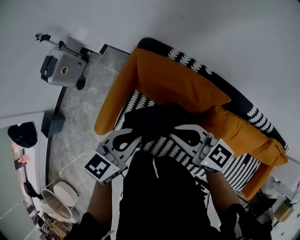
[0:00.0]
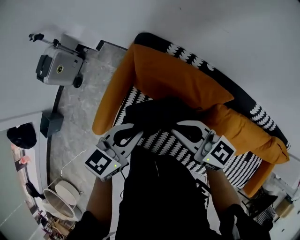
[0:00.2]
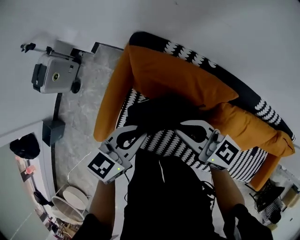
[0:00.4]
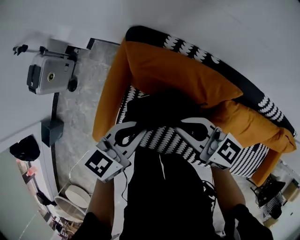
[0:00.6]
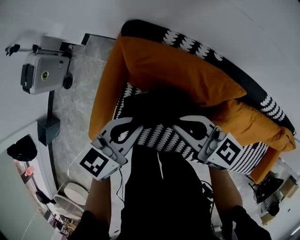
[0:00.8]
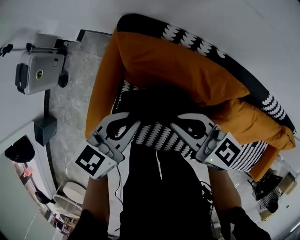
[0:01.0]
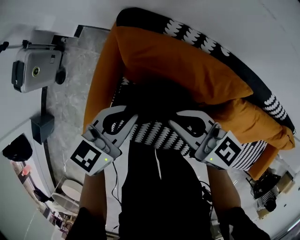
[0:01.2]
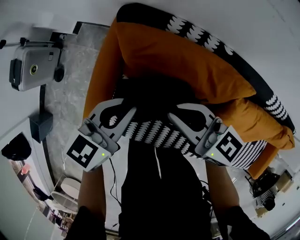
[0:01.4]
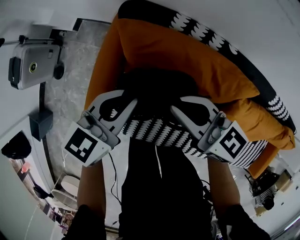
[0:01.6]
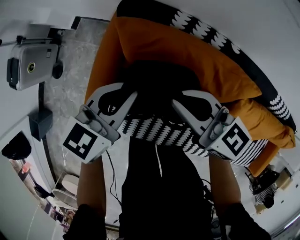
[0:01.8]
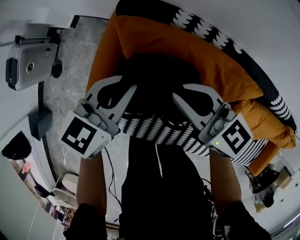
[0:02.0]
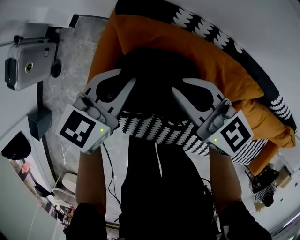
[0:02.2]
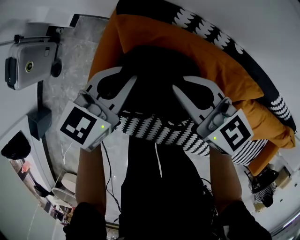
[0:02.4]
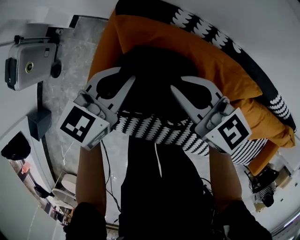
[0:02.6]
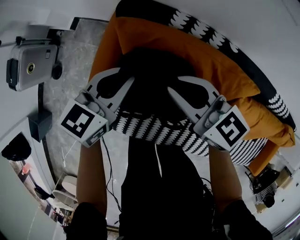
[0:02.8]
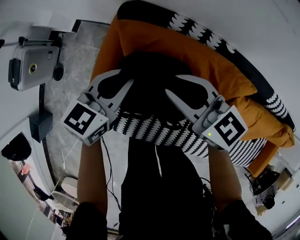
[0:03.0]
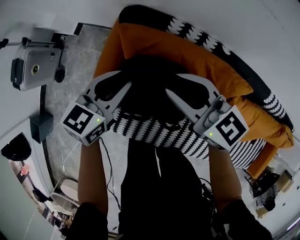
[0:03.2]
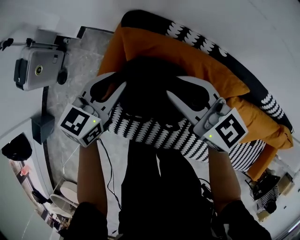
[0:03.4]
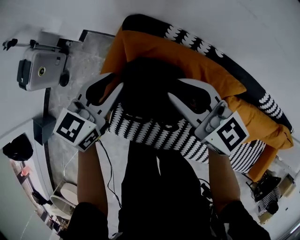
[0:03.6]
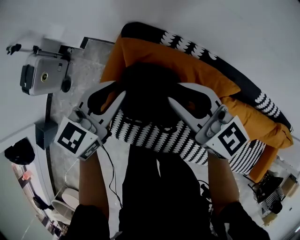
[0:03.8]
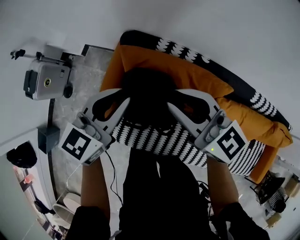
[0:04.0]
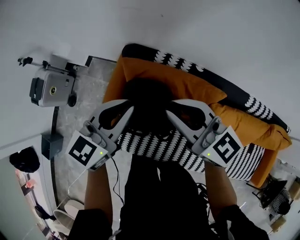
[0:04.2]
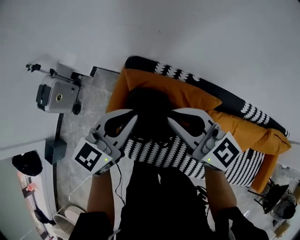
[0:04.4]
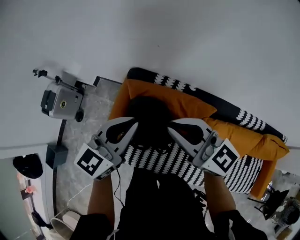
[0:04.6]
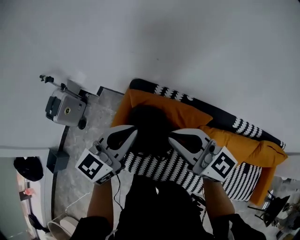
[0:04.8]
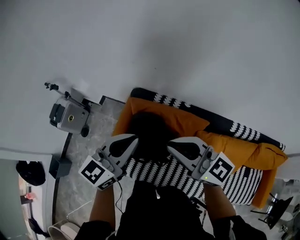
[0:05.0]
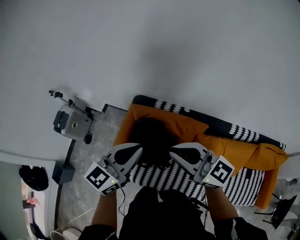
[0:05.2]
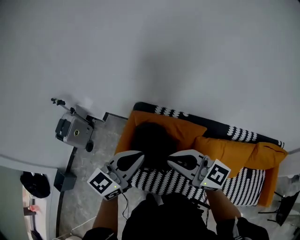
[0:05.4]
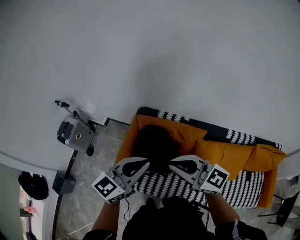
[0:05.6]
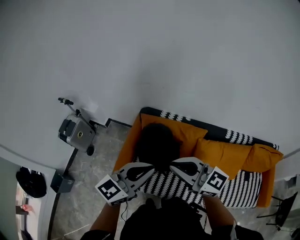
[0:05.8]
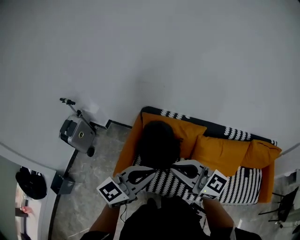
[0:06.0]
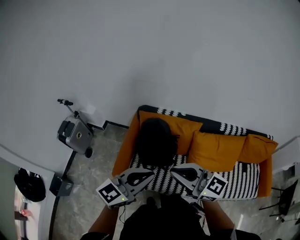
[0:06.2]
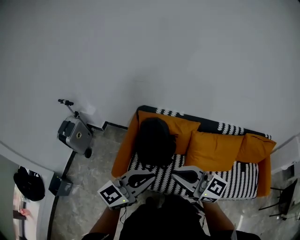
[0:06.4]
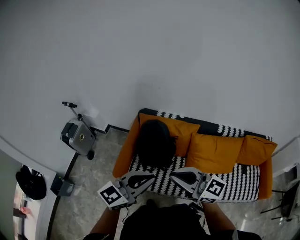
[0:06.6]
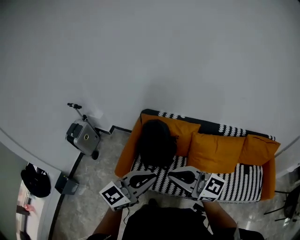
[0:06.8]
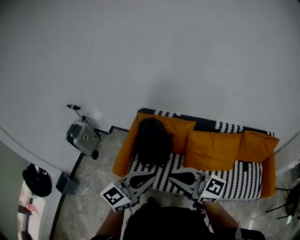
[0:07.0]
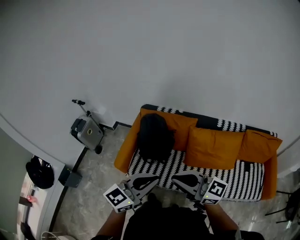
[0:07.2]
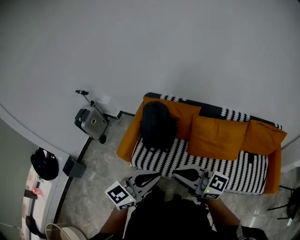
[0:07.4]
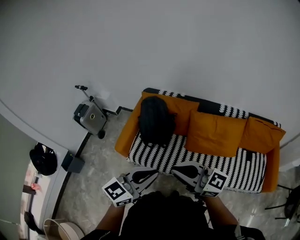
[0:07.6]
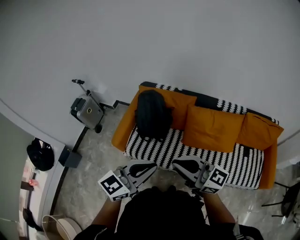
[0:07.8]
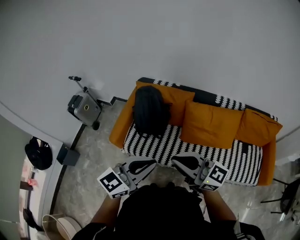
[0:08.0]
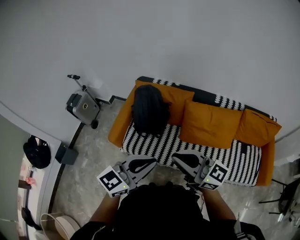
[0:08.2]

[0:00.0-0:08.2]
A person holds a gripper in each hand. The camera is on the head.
0.0 to 1.6 s: Both grippers move downward and forward, about 15 cm.
1.6 to 3.2 s: The left gripper goes about 10 cm to the left and forward, and opens up. The right gripper is displaced forward and to the left by about 10 cm.
3.2 to 5.0 s: Both grippers move upward and backward, some 30 cm. The right gripper swivels about 20 degrees. Meanwhile the left gripper turns by some 20 degrees, and closes.
5.0 to 6.6 s: The grippers both shift backward by approximately 30 cm.
6.6 to 8.2 s: The right gripper moves to the right and backward, some 15 cm, while the left gripper heads backward and to the right, covering roughly 15 cm.

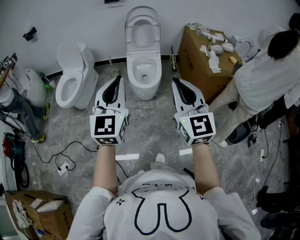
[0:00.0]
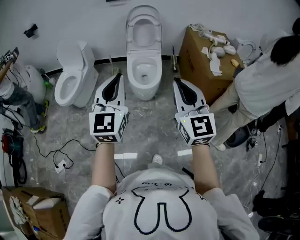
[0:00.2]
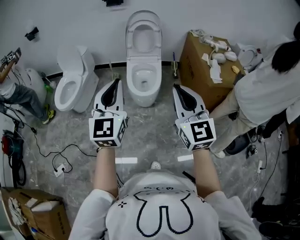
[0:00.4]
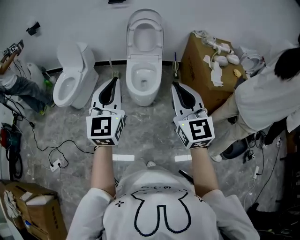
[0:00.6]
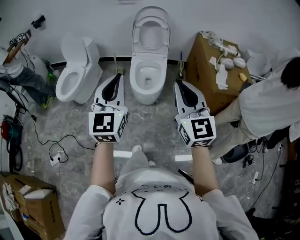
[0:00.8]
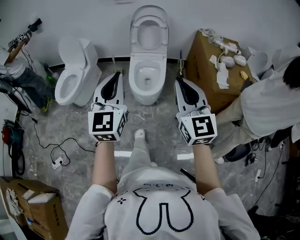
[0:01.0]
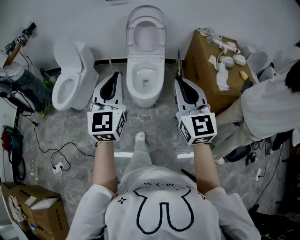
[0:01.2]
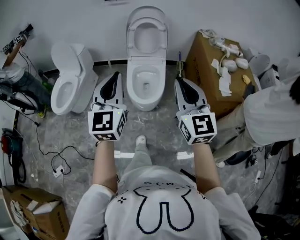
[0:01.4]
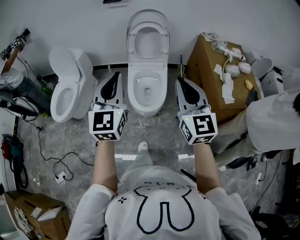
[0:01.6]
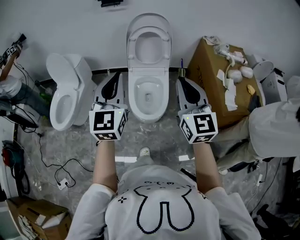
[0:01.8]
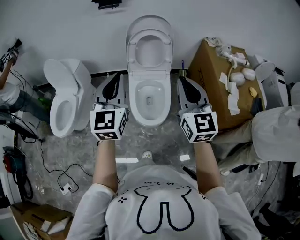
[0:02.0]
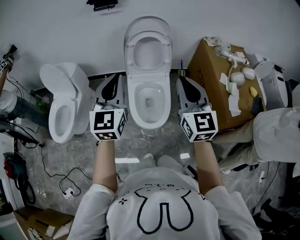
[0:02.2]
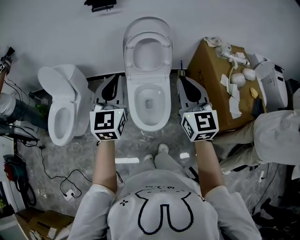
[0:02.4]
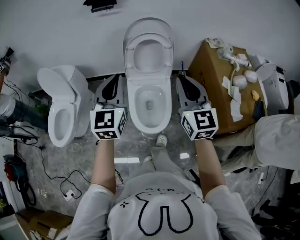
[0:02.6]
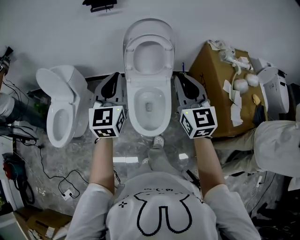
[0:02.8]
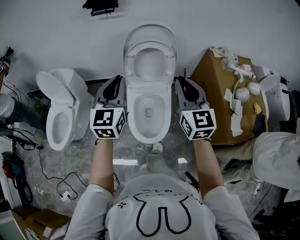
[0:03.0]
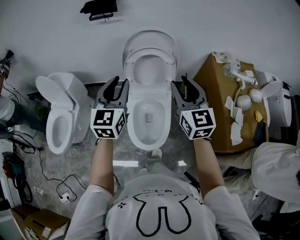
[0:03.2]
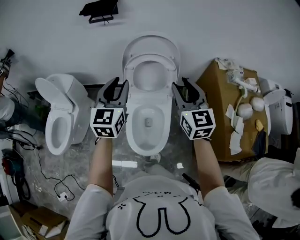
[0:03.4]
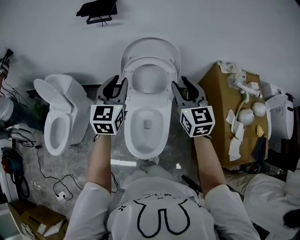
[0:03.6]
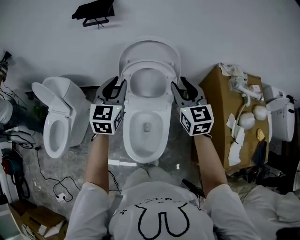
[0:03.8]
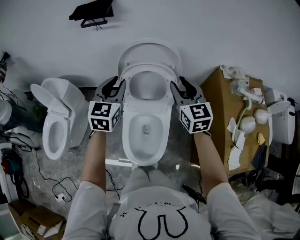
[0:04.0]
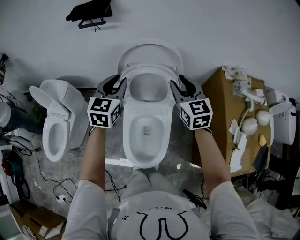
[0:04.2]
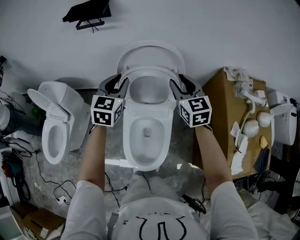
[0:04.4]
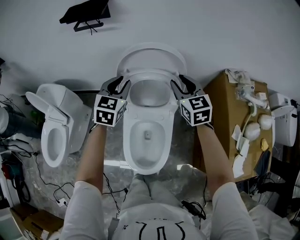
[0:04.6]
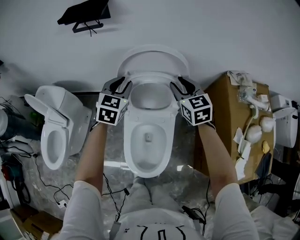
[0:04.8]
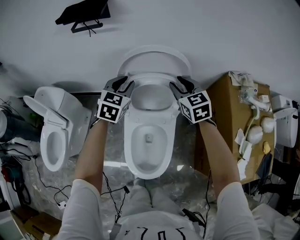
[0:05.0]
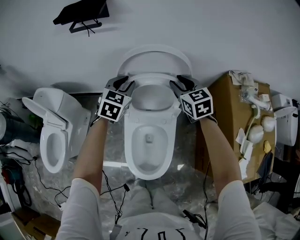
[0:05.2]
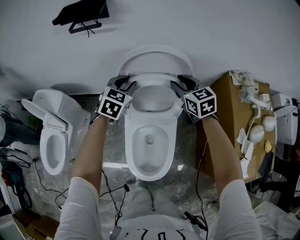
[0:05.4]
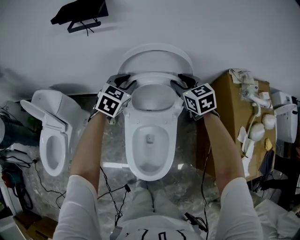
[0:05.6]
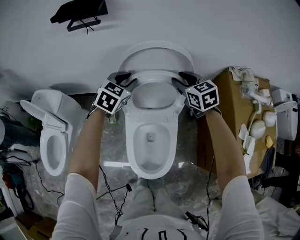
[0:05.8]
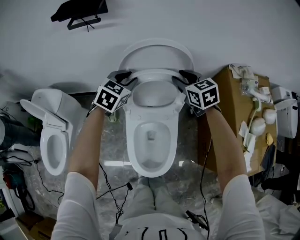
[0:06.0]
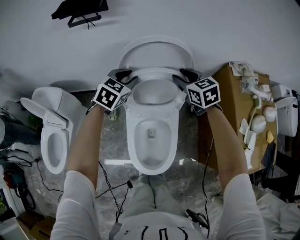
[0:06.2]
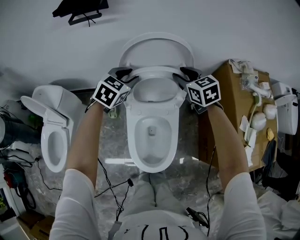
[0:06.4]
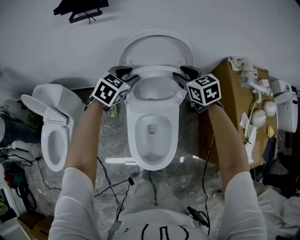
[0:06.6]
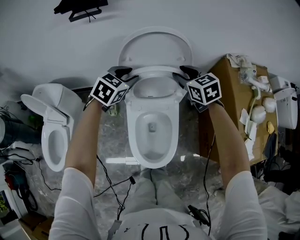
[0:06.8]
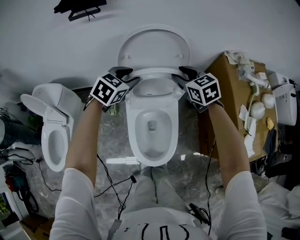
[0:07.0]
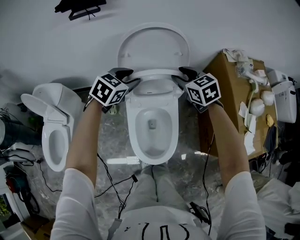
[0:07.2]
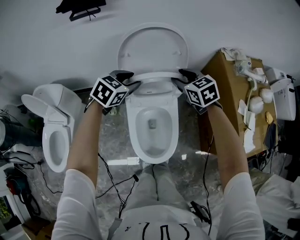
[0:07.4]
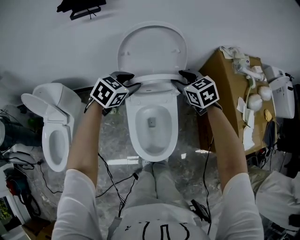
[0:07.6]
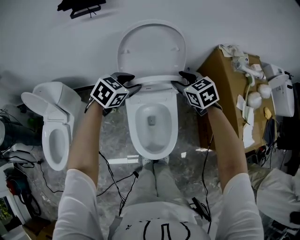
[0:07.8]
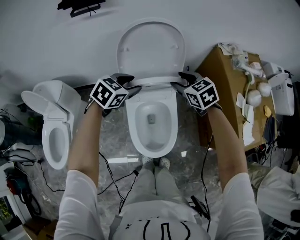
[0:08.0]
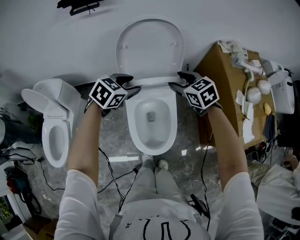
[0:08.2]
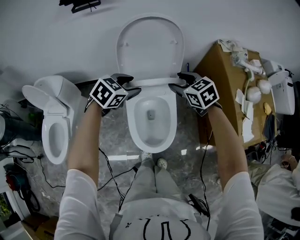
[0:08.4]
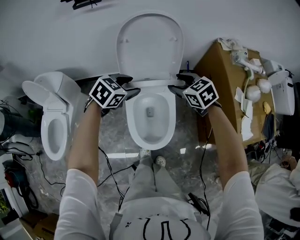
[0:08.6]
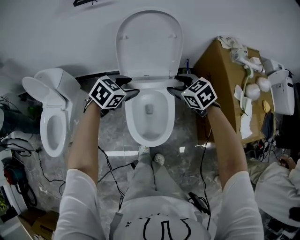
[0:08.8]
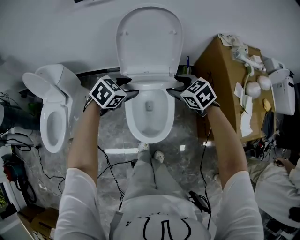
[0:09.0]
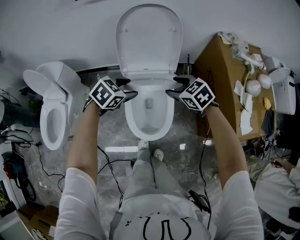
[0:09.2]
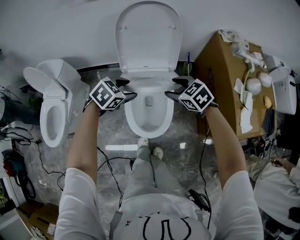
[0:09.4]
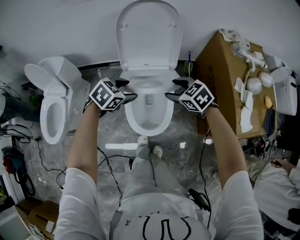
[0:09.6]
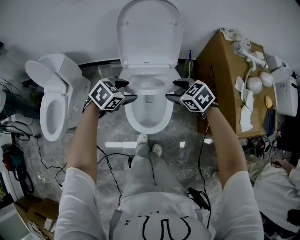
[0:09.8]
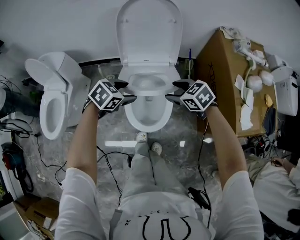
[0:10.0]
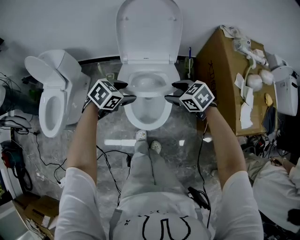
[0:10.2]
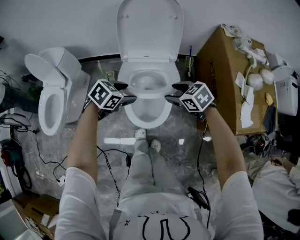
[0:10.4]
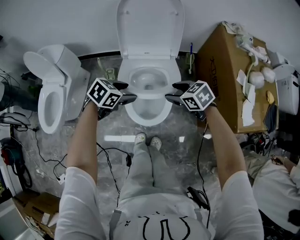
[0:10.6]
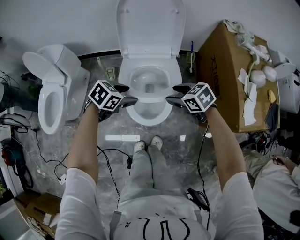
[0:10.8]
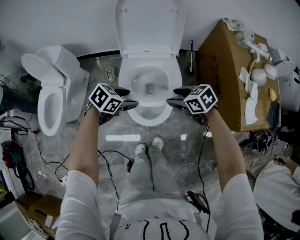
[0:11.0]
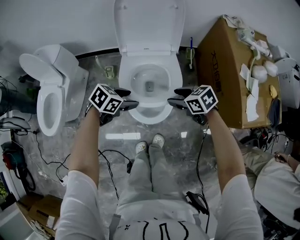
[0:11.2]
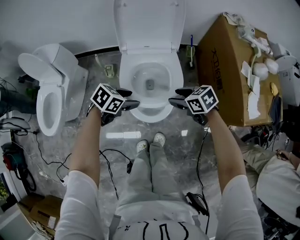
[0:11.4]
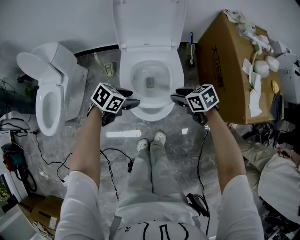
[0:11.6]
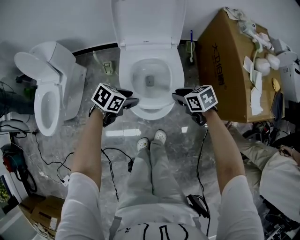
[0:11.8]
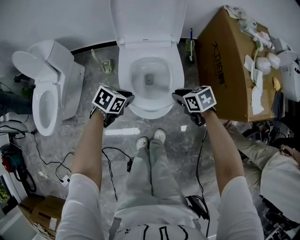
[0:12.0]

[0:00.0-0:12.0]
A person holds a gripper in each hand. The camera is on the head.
0.0 to 1.6 s: The two grippers go some 30 cm forward.
1.6 to 3.0 s: Both grippers move forward, some 30 cm.
3.0 to 4.4 s: The grippers both shift forward and downward by some 30 cm. The right gripper opens its fingers.
4.4 to 6.0 s: The grippers both shift downward and forward by some 10 cm. The left gripper rotates about 30 degrees.
6.0 to 7.6 s: The two grippers go some 10 cm backward.
7.6 to 9.0 s: Both grippers travel together backward, approximately 15 cm.
9.0 to 10.4 s: The left gripper changes place by approximately 15 cm. The right gripper shifts by about 15 cm.
10.4 to 12.0 s: Both grippers travel together downward, roughly 10 cm. The left gripper closes up, while the right gripper swivels about 20 degrees, and closes.

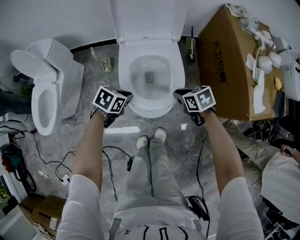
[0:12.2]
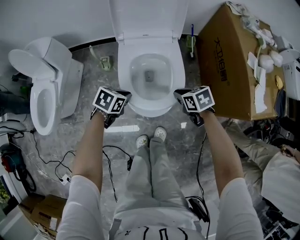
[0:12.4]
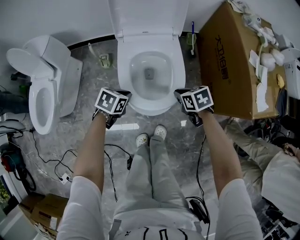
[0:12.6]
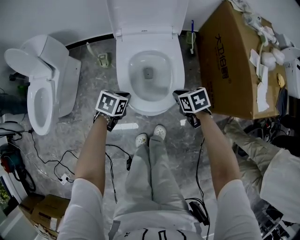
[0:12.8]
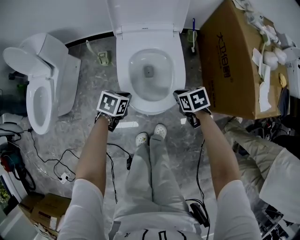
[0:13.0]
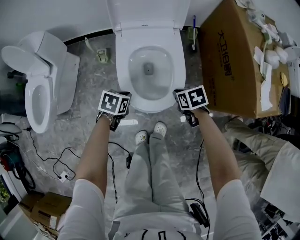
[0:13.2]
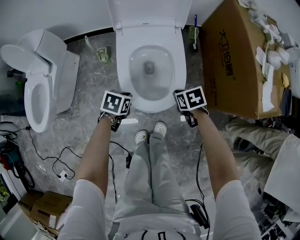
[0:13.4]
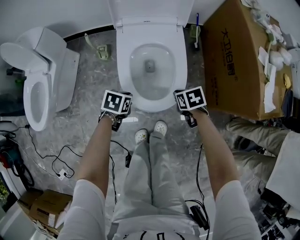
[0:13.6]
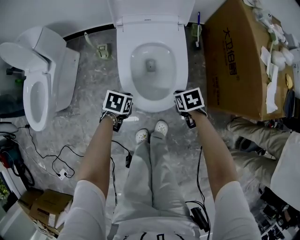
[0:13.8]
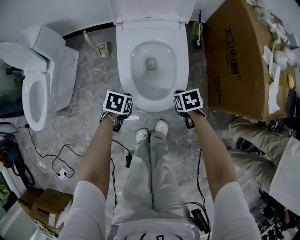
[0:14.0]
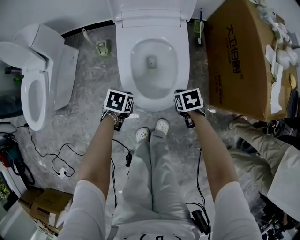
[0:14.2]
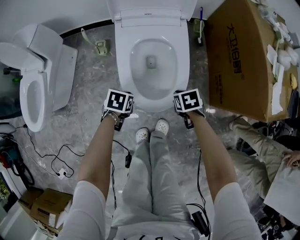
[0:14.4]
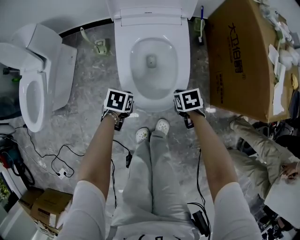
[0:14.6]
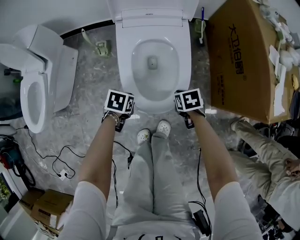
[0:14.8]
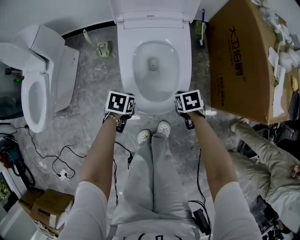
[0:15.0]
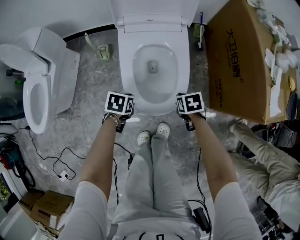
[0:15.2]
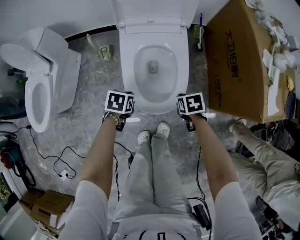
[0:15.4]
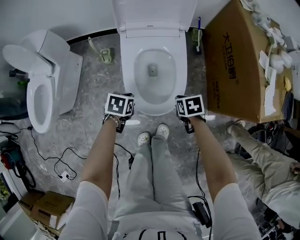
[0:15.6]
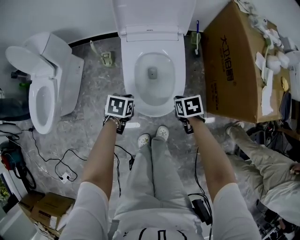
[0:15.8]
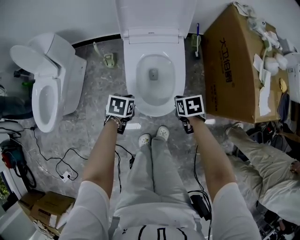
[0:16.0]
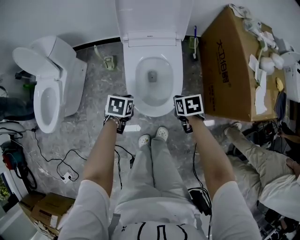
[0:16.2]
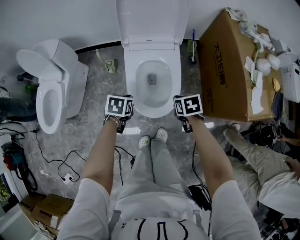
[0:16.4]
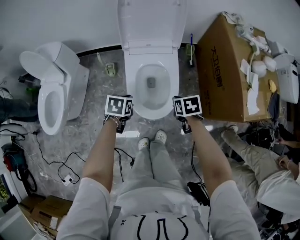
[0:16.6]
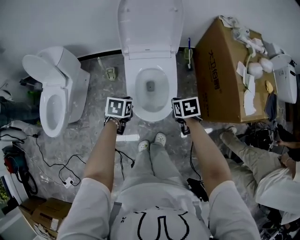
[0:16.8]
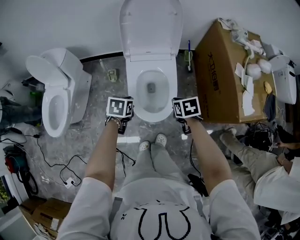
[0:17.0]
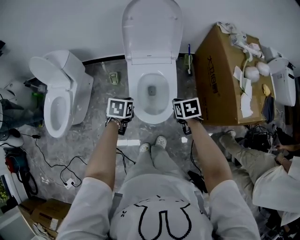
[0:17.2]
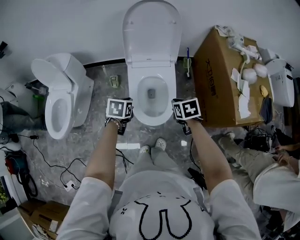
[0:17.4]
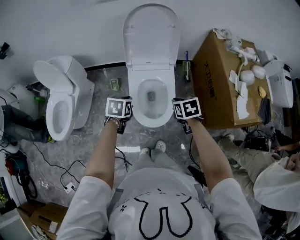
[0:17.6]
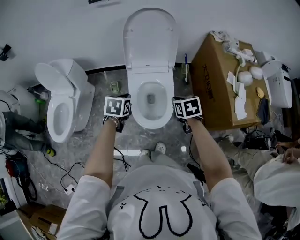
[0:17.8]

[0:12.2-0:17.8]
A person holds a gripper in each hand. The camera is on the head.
12.2 to 13.6 s: Both grippers travel together downward, approximately 10 cm.
13.6 to 15.0 s: Both grippers move downward, about 5 cm.
15.0 to 16.4 s: Both grippers travel together upward, approximately 15 cm.
16.4 to 17.8 s: Both grippers travel together upward, roughly 15 cm.
